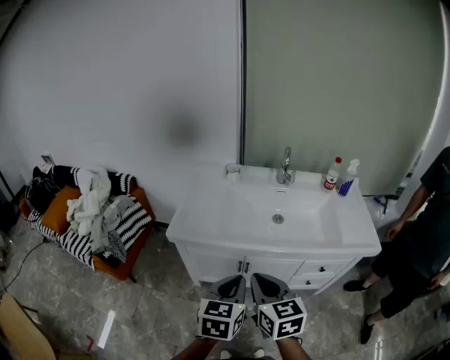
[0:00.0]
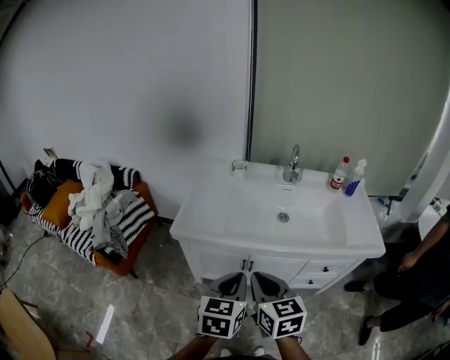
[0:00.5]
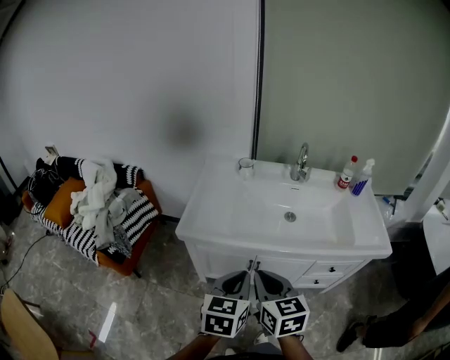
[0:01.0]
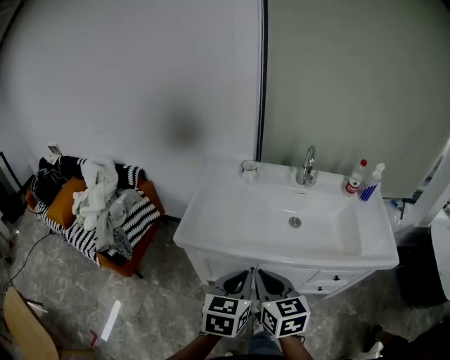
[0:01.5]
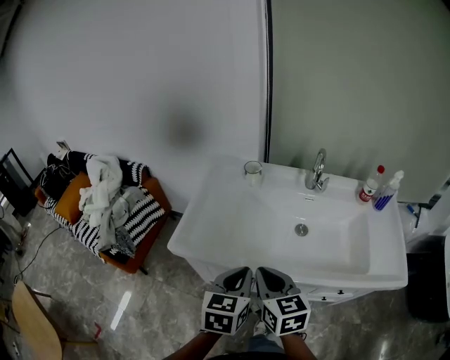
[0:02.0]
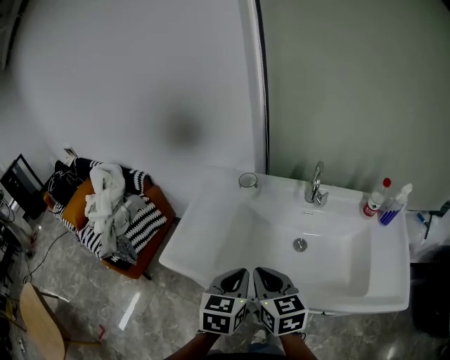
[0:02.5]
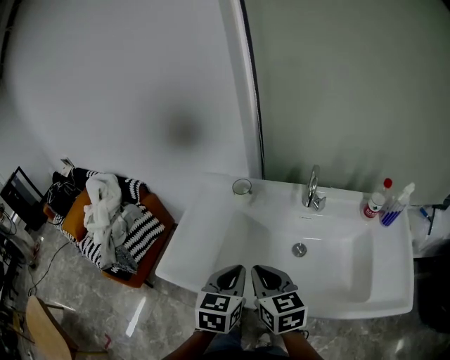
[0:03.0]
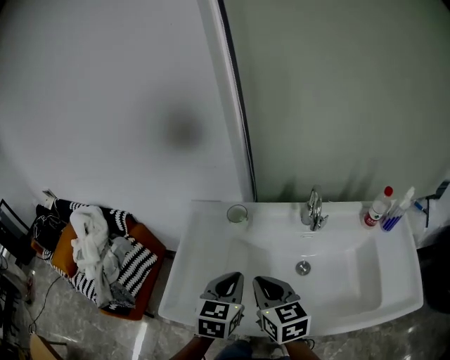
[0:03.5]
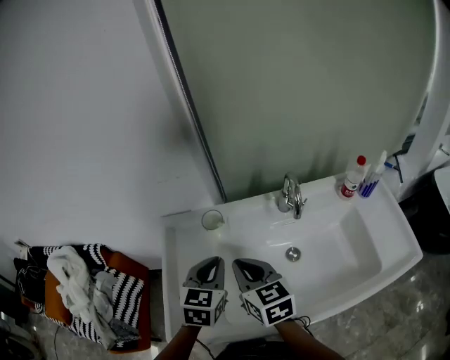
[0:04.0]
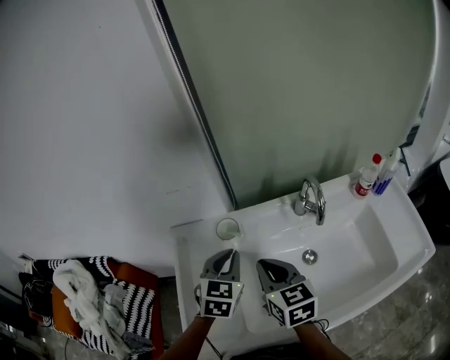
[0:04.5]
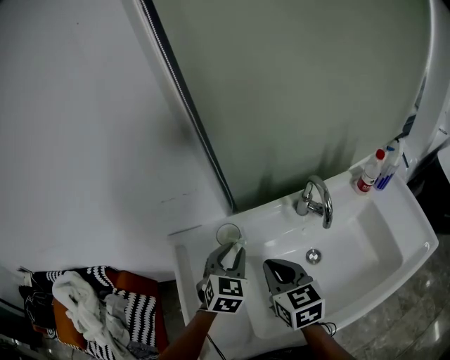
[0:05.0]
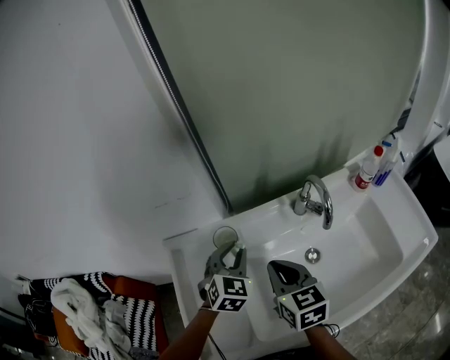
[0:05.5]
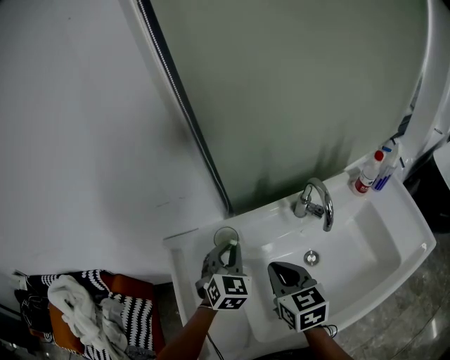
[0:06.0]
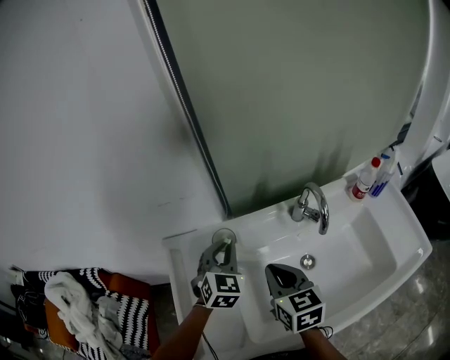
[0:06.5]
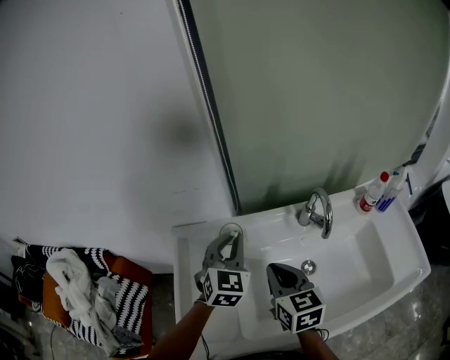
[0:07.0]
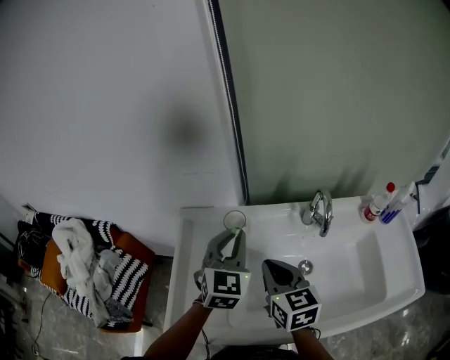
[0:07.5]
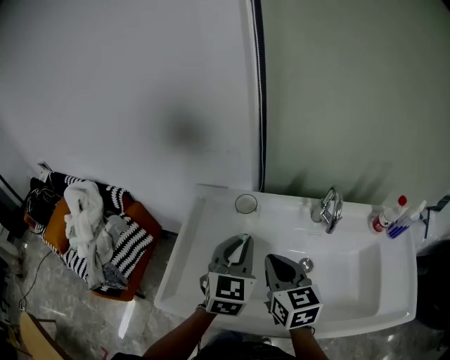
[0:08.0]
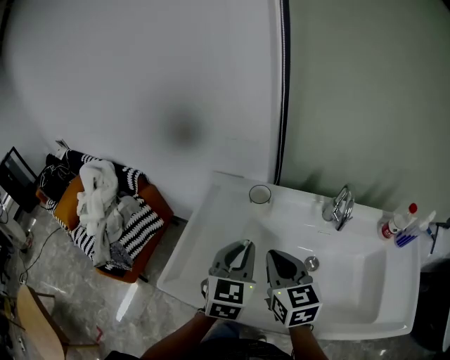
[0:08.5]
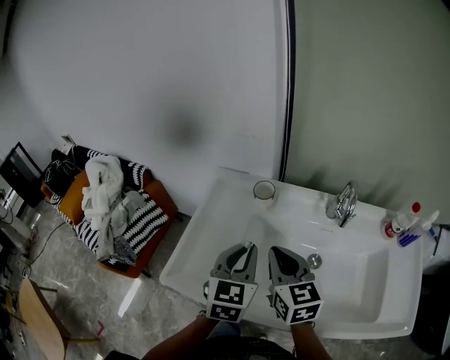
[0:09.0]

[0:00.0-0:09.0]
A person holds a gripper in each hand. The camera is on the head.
0:00.0 to 0:02.0: Both grippers travel together forward, some 15 cm.
0:02.0 to 0:04.5: Both grippers move forward, approximately 30 cm. The left gripper swivels some 30 degrees.
0:04.5 to 0:07.0: The left gripper moves forward, roughly 5 cm.
0:07.0 to 0:09.0: The left gripper goes approximately 15 cm backward, and swivels some 30 degrees; the right gripper travels backward by about 5 cm, and rotates approximately 20 degrees.

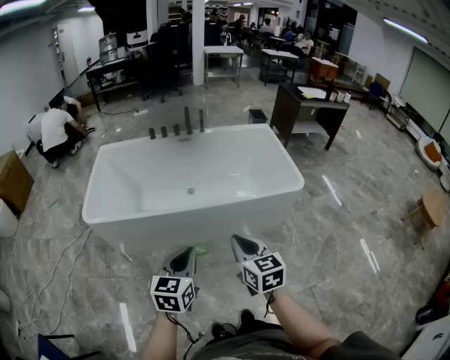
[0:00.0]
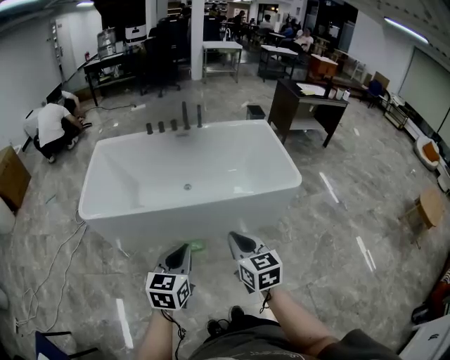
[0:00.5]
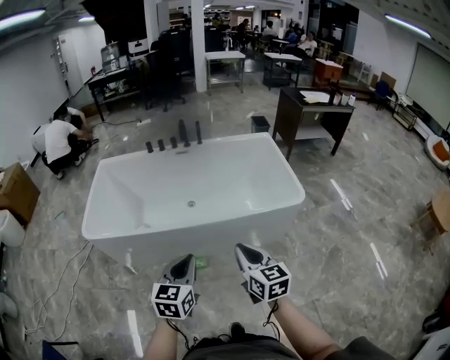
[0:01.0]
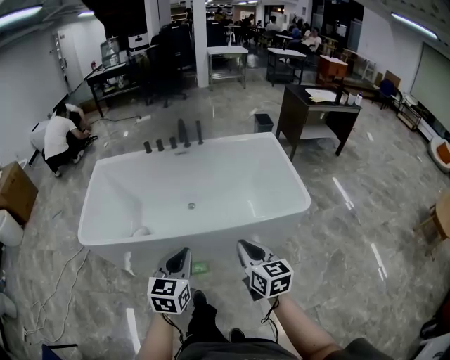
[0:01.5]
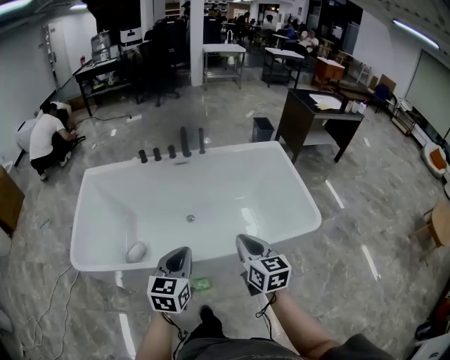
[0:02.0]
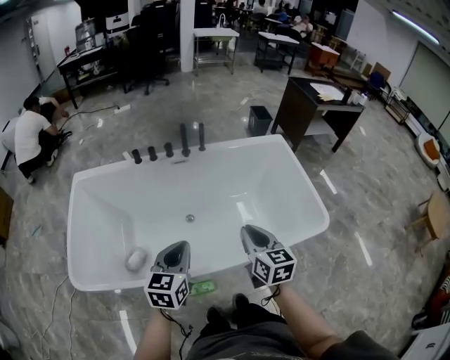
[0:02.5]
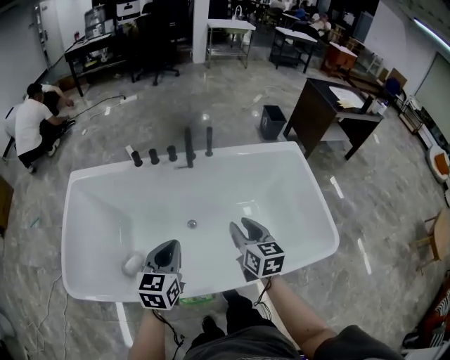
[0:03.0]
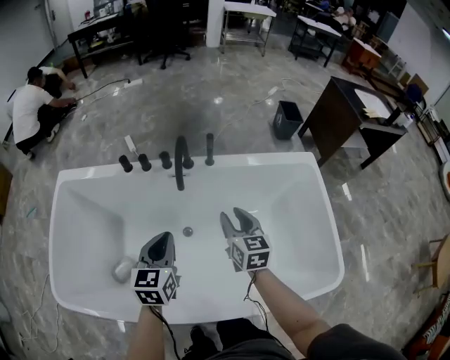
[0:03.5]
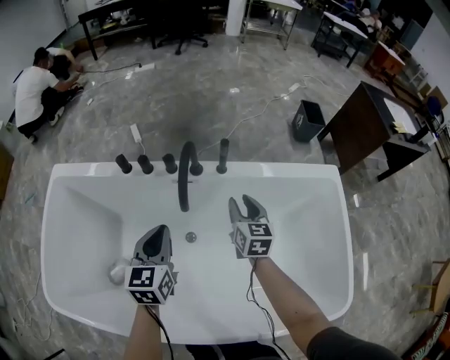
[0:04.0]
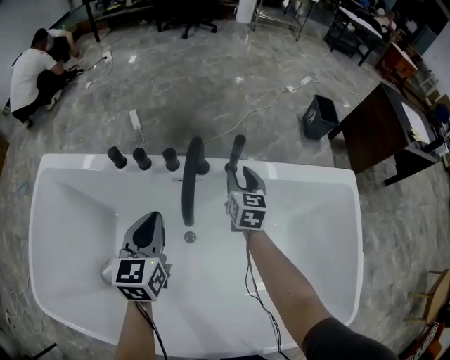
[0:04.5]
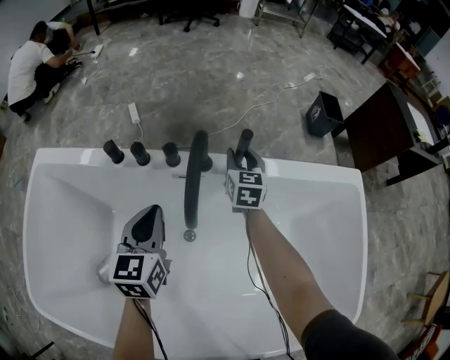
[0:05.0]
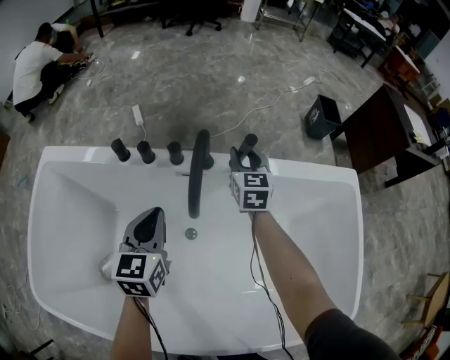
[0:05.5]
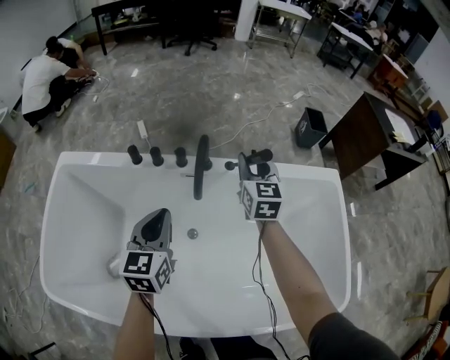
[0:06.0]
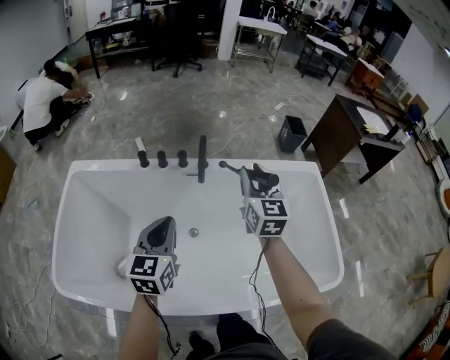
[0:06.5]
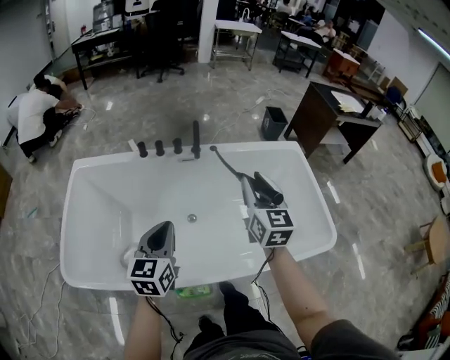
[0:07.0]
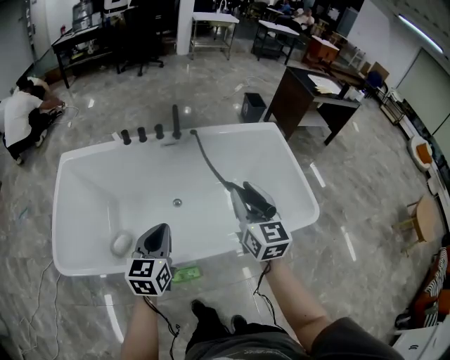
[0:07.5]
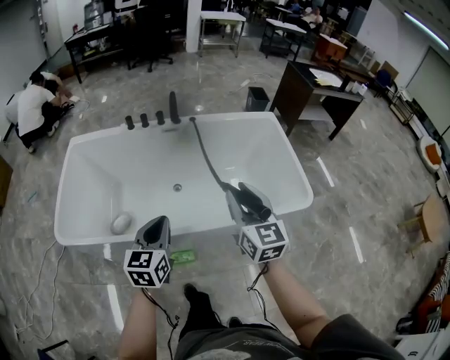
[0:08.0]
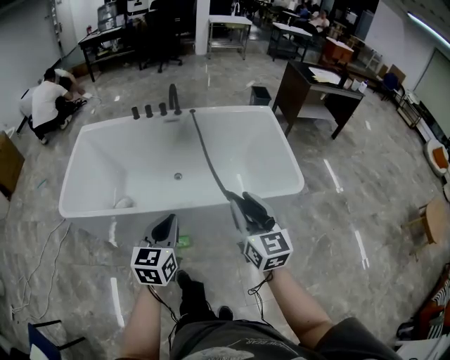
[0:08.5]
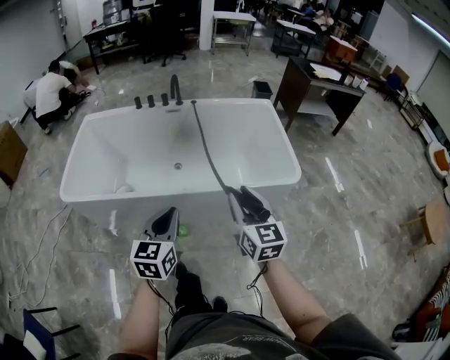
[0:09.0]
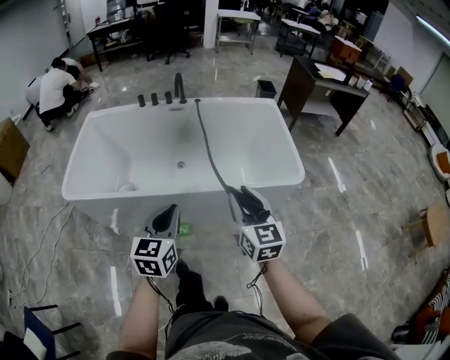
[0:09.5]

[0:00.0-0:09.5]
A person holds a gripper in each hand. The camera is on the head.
0:00.0 to 0:02.0: Both grippers travel together forward, approximately 30 cm.
0:02.0 to 0:04.0: Both grippers are carried forward, about 60 cm. The right gripper opens up.
0:04.0 to 0:05.5: The left gripper travels forward and downward by roughly 10 cm, while the right gripper is displaced forward by roughly 15 cm.
0:05.5 to 0:07.5: The pair of grippers is taken backward, roughly 50 cm. The right gripper moves upward, approximately 30 cm.
0:07.5 to 0:09.5: The left gripper travels backward and to the right by roughly 30 cm, while the right gripper shifts approximately 30 cm backward.

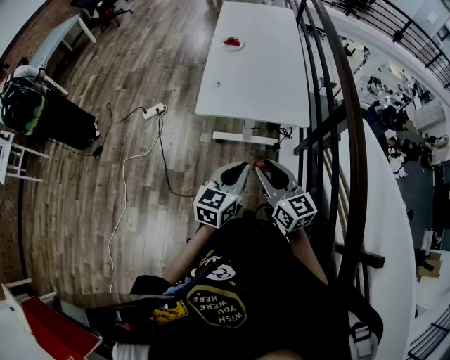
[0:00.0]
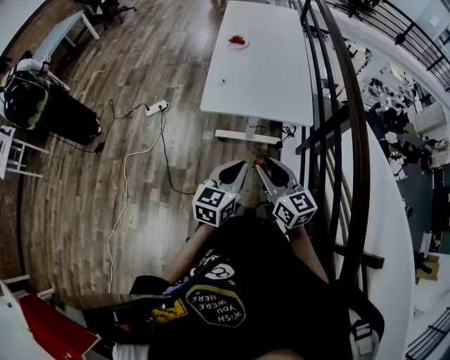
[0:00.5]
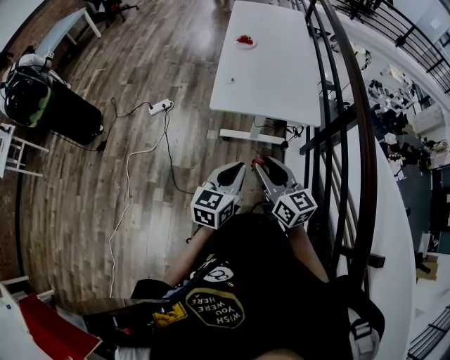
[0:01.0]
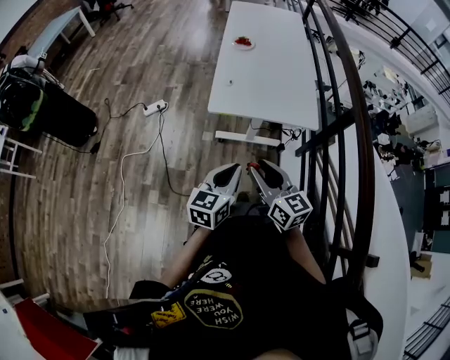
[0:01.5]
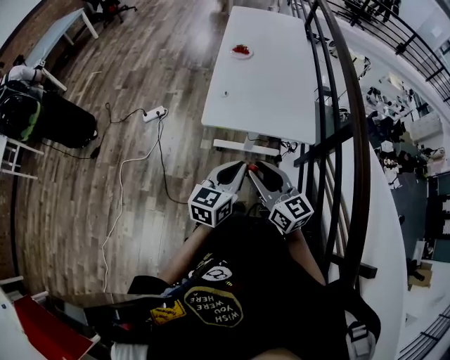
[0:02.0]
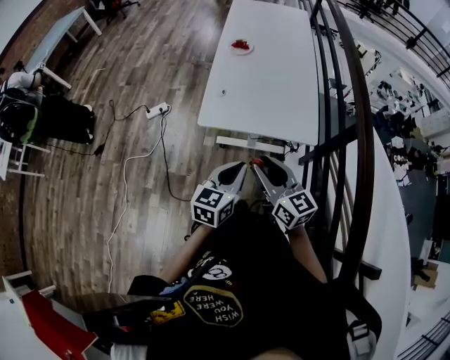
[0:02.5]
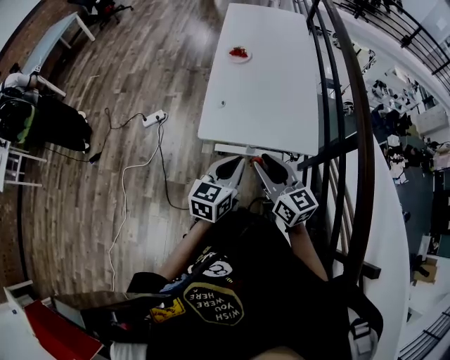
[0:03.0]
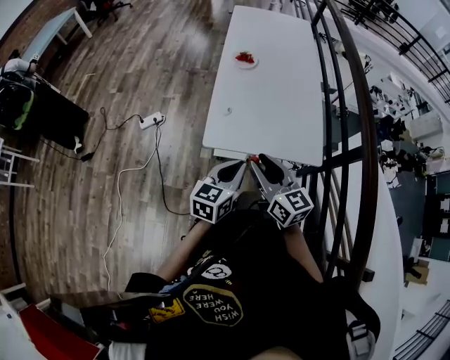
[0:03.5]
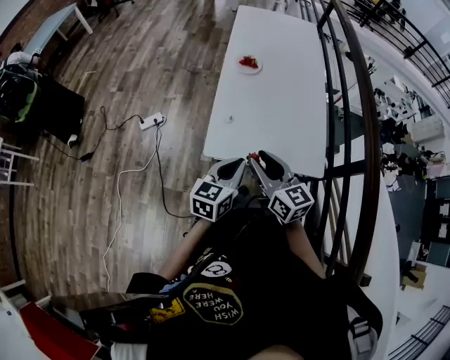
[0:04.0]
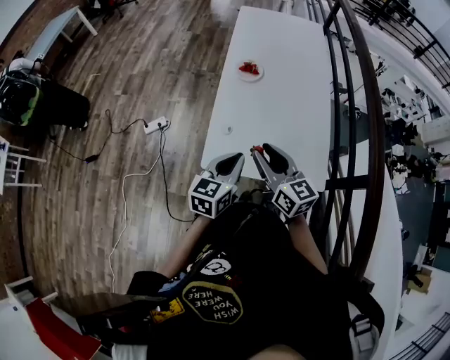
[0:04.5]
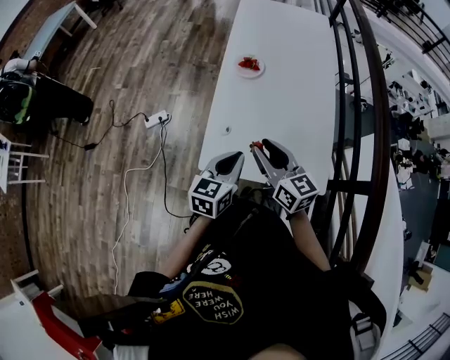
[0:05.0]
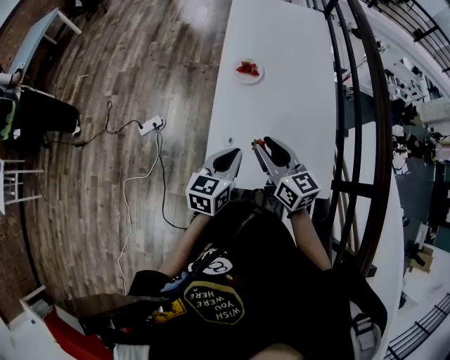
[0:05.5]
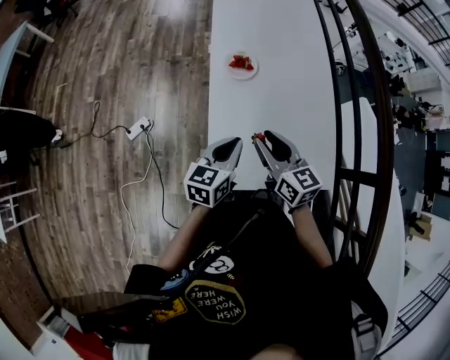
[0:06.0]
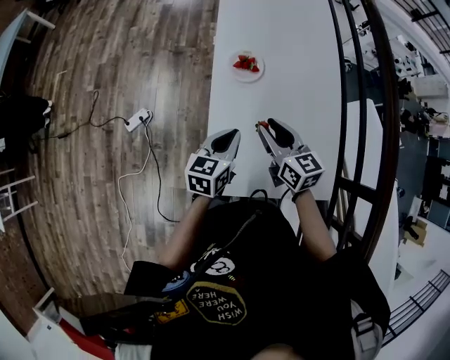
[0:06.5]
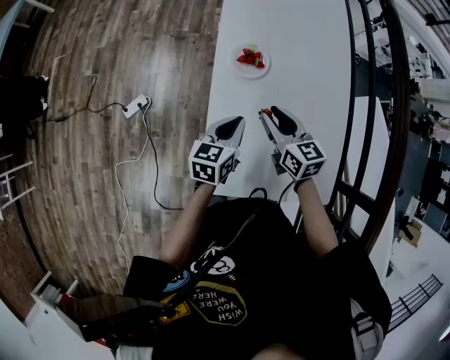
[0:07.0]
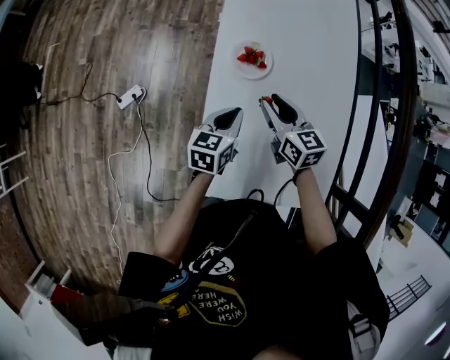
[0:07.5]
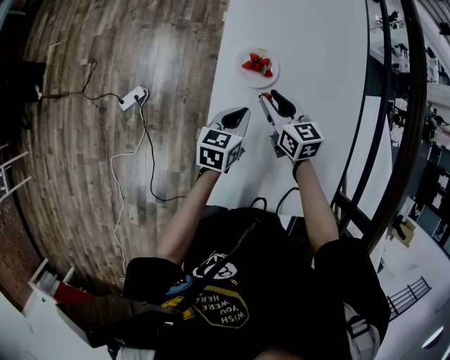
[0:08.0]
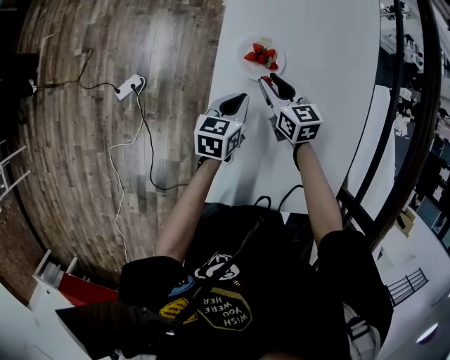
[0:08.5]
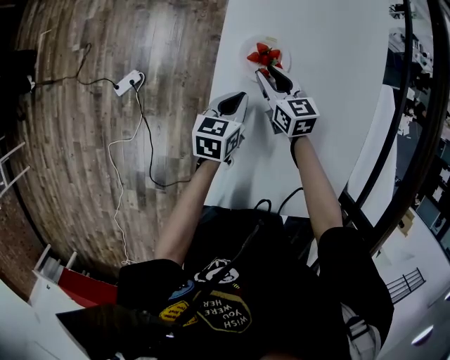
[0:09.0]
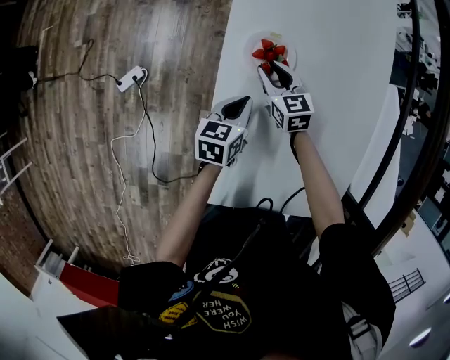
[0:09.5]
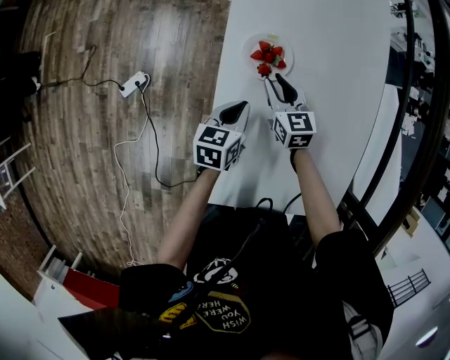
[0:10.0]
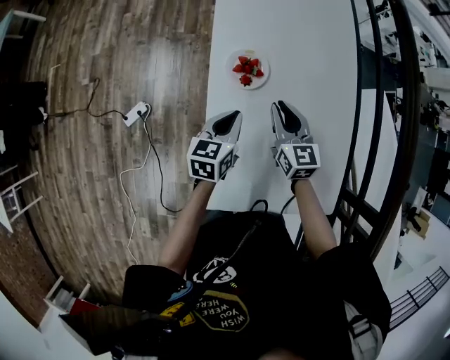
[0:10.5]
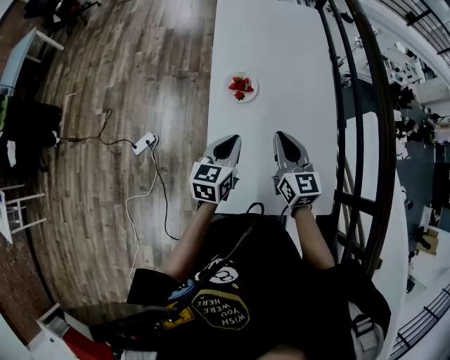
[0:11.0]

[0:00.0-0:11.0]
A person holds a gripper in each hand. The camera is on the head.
0:00.0 to 0:02.0: The two grippers go approximately 10 cm forward and to the left.
0:02.0 to 0:03.5: The two grippers go about 15 cm forward.
0:03.5 to 0:05.5: Both grippers travel together forward, approximately 25 cm.
0:05.5 to 0:07.5: The two grippers go some 30 cm forward and downward.
0:07.5 to 0:09.0: Both grippers move downward and forward, approximately 15 cm.
0:09.0 to 0:11.0: The left gripper shifts some 25 cm upward and backward; the right gripper is displaced upward, backward and to the right by some 35 cm, changes its angle by roughly 30 degrees, and closes up.
